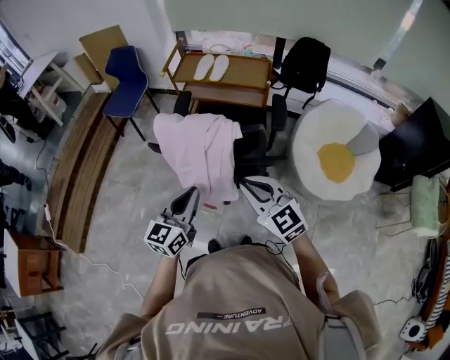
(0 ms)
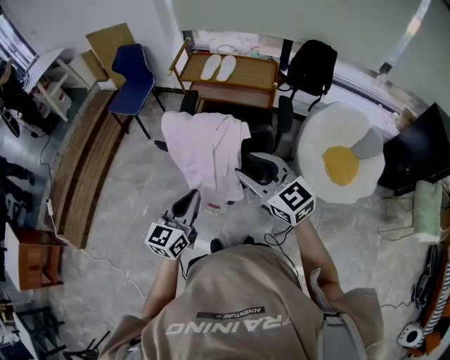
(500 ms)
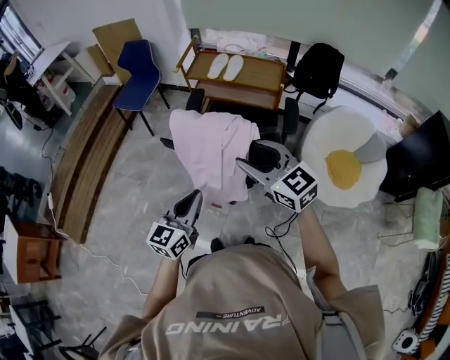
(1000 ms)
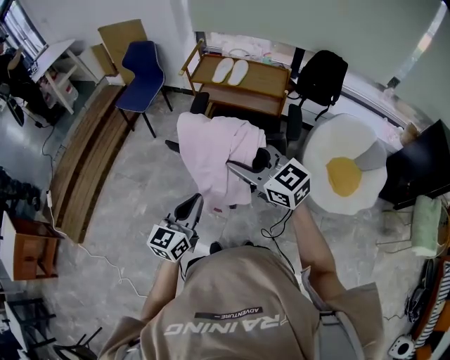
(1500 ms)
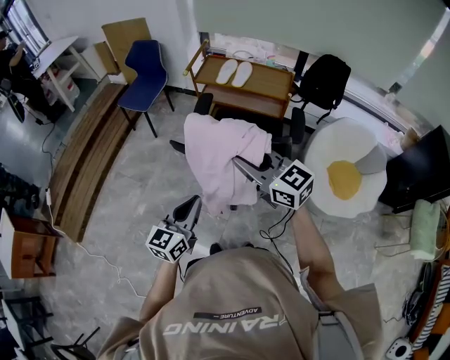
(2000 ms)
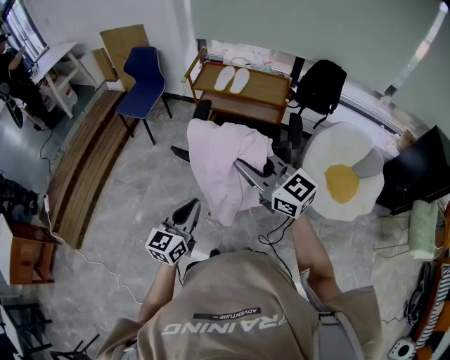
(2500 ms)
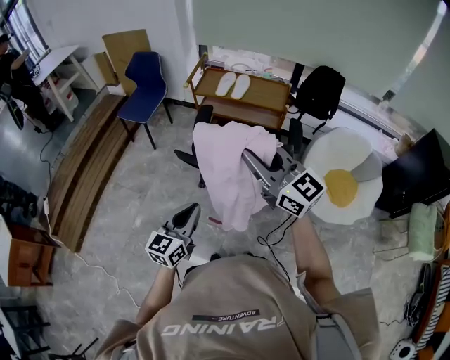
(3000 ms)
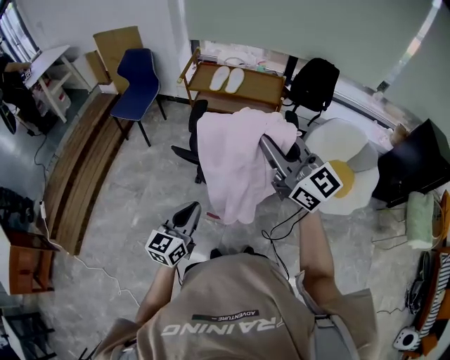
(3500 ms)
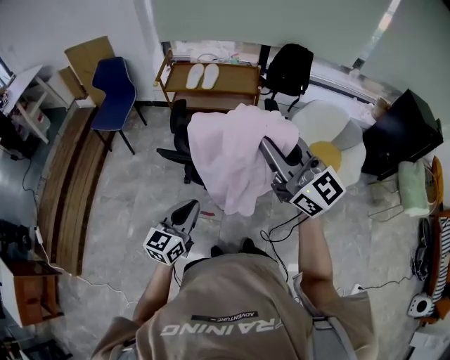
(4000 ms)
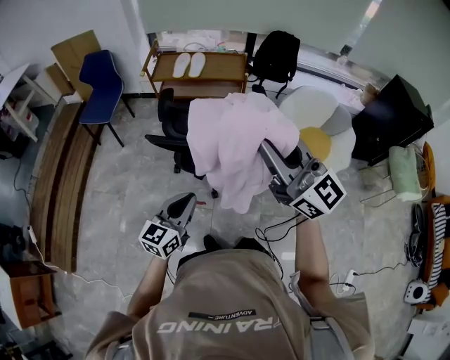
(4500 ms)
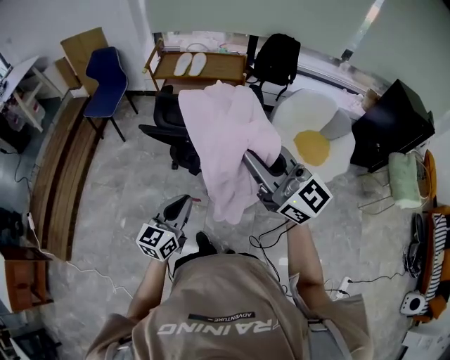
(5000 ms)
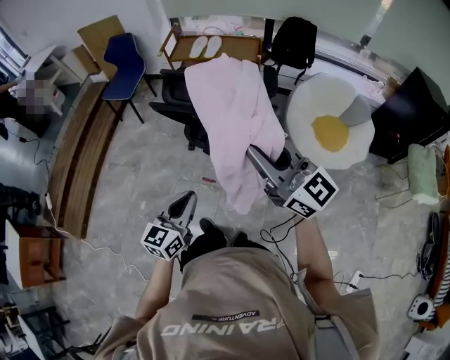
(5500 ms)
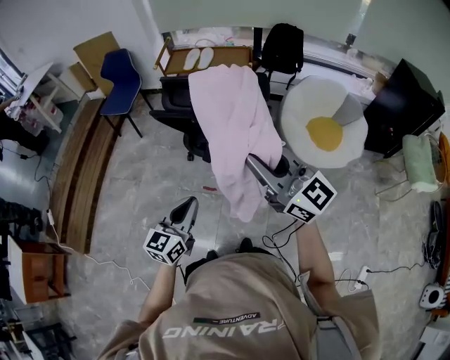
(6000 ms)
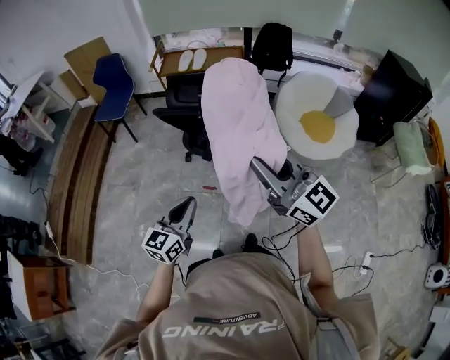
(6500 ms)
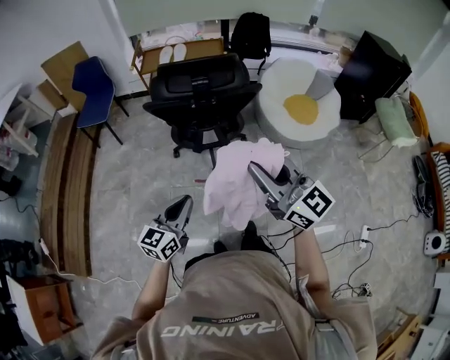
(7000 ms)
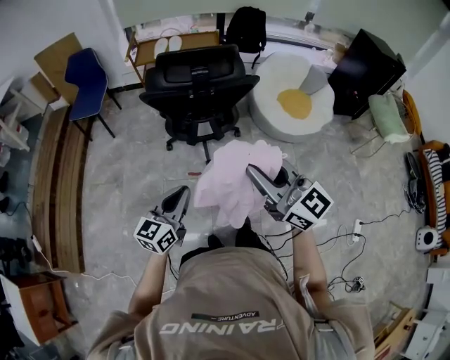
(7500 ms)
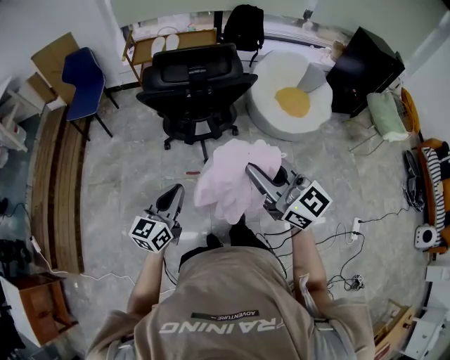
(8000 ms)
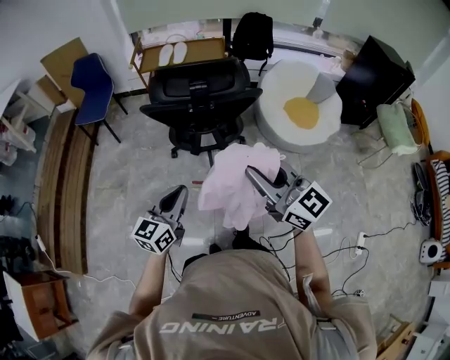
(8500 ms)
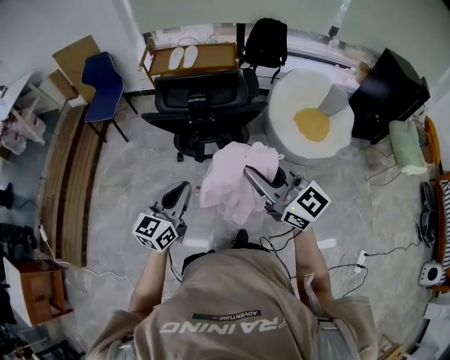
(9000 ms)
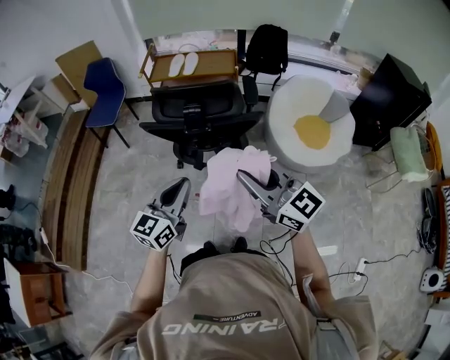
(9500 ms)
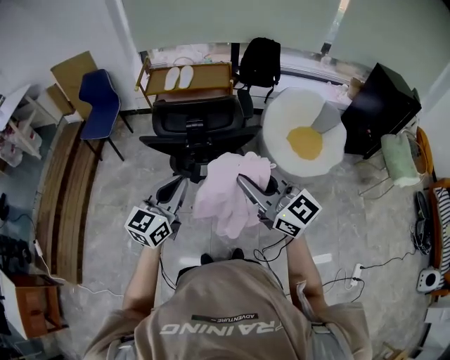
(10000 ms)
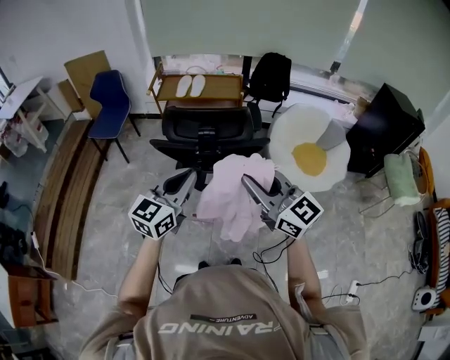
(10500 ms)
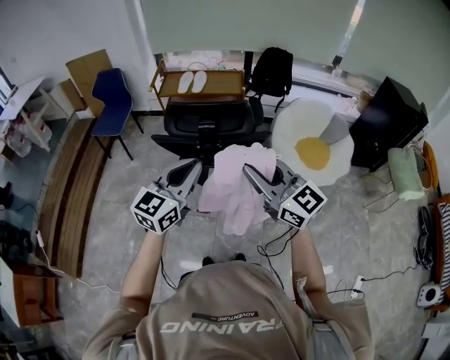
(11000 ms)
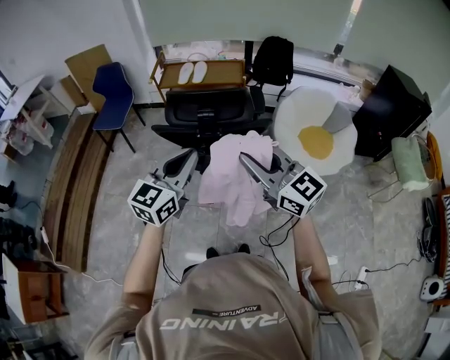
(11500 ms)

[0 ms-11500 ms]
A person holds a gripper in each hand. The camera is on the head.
0 ms to 2000 ms: The left gripper moves to the left, roughly 5 cm. Meanwhile the right gripper is displaced forward, to the left and upward by roughly 15 cm, swivels roughly 20 degrees, and opens and closes again.
2000 ms to 4000 ms: The right gripper goes some 15 cm upward and backward, and turns by some 30 degrees.
4000 ms to 6000 ms: The grippers both shift backward by approximately 20 cm.
6000 ms to 7500 ms: The right gripper heads backward and to the left, covering roughly 15 cm. The left gripper is displaced to the left by about 10 cm.
7500 ms to 9500 ms: The left gripper travels forward, to the right and upward by some 15 cm. Meanwhile the right gripper is displaced forward and to the right by about 15 cm.
9500 ms to 11500 ms: The right gripper changes place by about 5 cm, while the left gripper moves upward, about 10 cm.

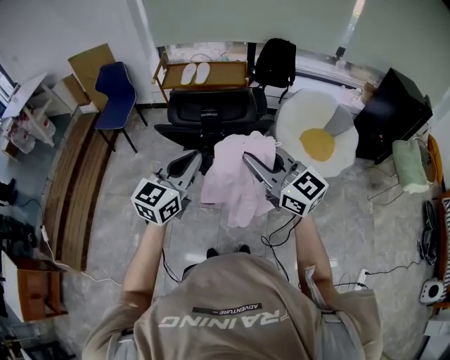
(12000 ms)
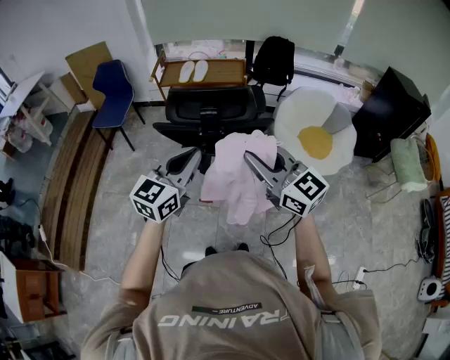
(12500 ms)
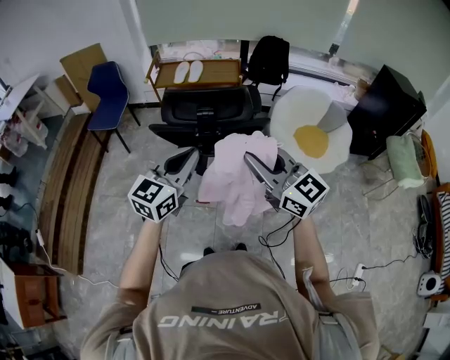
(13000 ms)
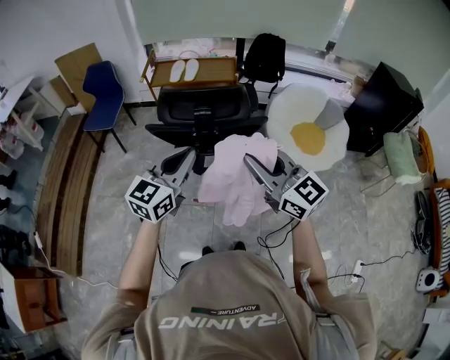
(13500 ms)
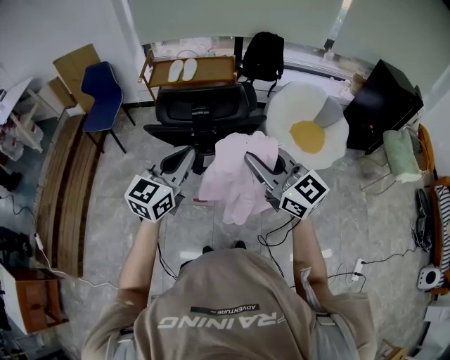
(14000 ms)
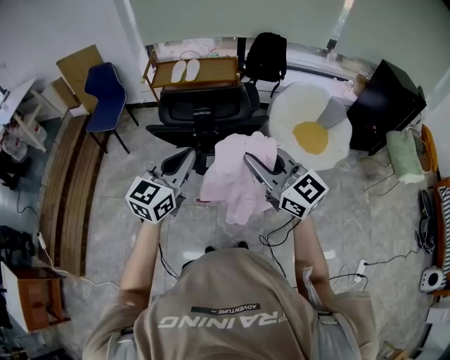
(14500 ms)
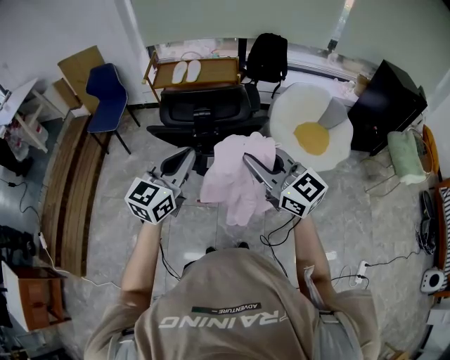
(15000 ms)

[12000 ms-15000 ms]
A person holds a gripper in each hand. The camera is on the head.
12000 ms to 13500 ms: There are only small adjustments of the grippers.
13500 ms to 15000 ms: The two grippers keep their place.

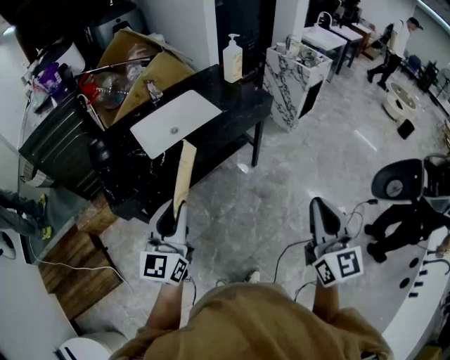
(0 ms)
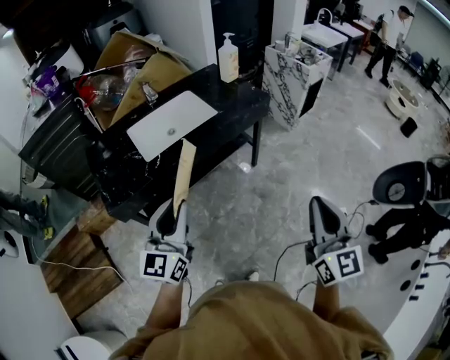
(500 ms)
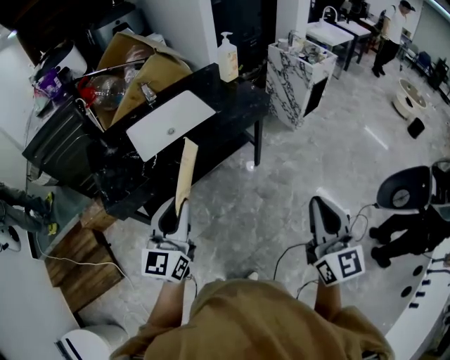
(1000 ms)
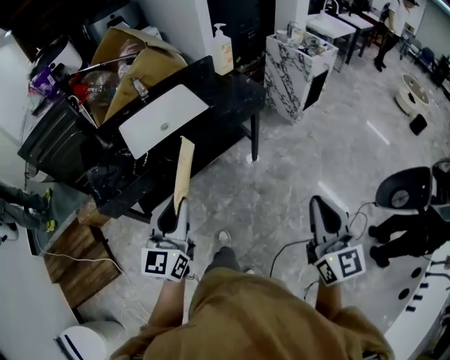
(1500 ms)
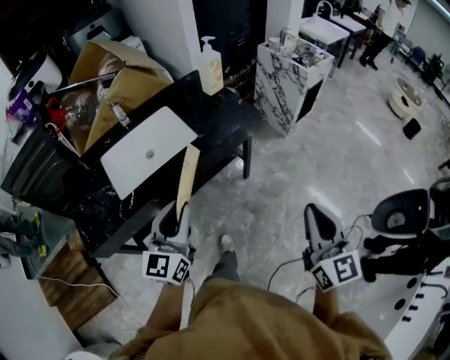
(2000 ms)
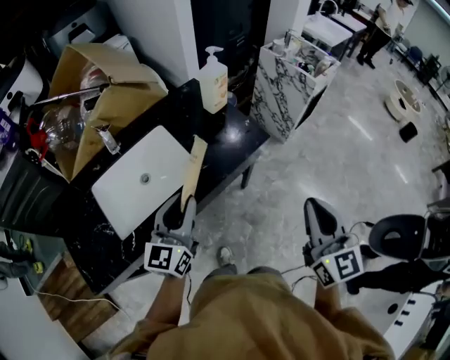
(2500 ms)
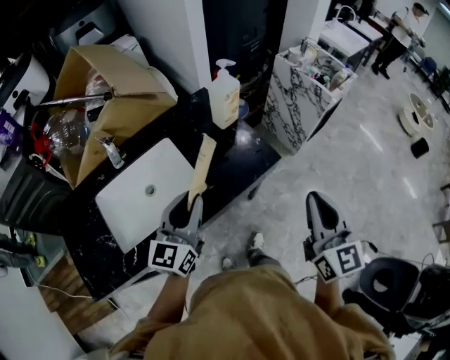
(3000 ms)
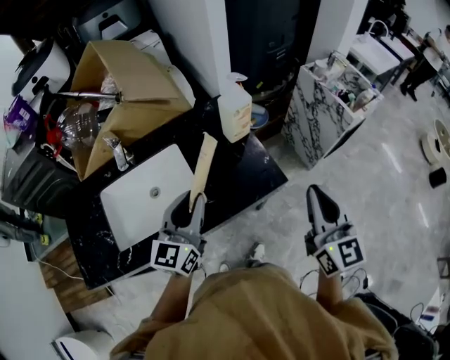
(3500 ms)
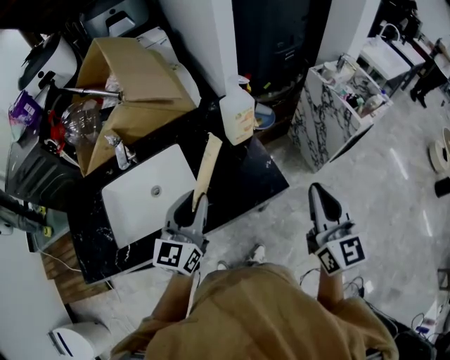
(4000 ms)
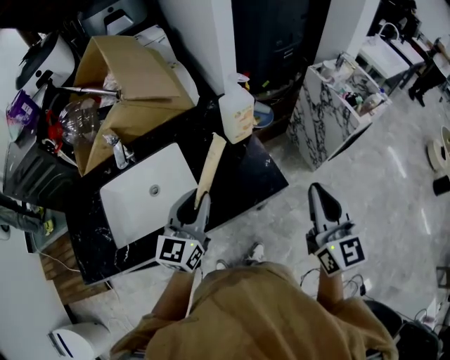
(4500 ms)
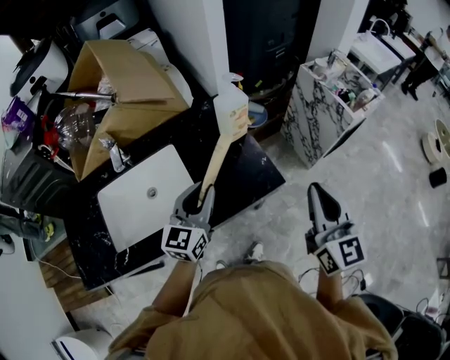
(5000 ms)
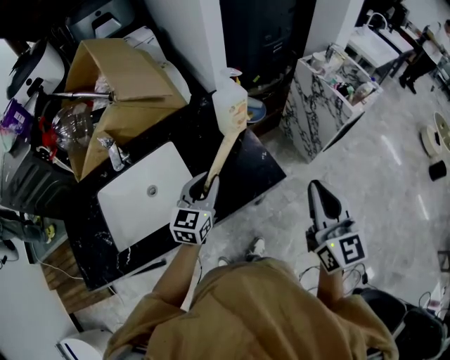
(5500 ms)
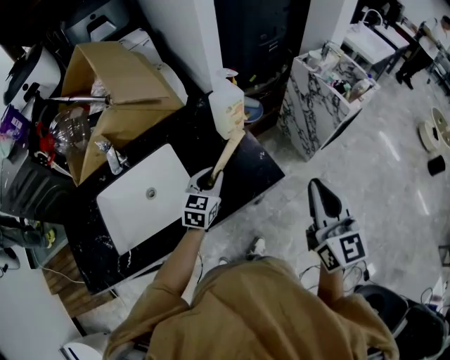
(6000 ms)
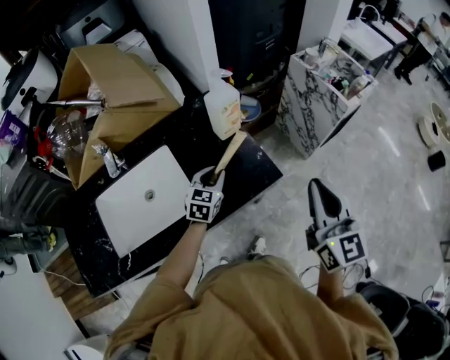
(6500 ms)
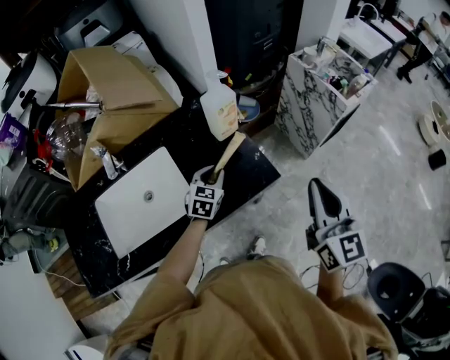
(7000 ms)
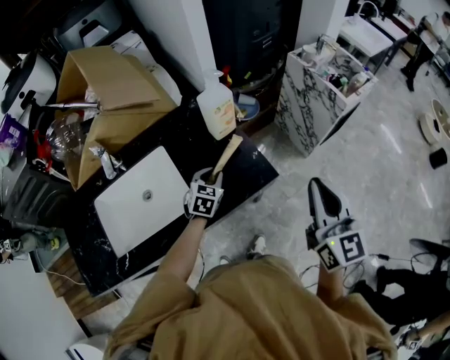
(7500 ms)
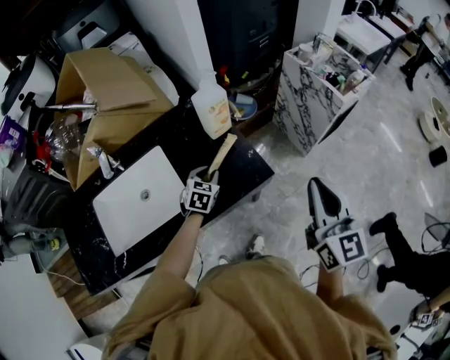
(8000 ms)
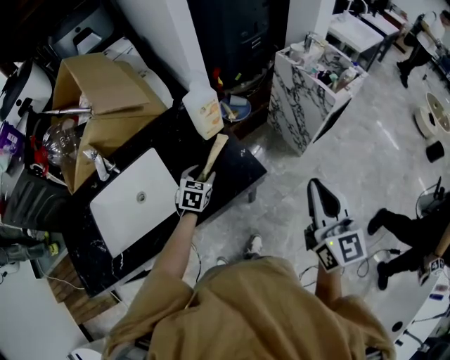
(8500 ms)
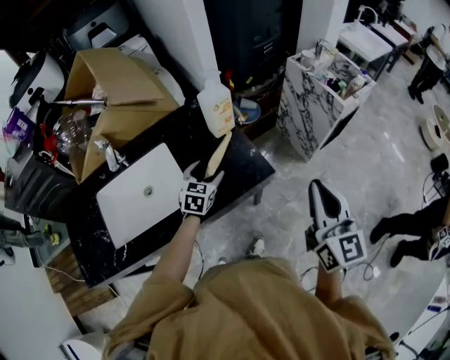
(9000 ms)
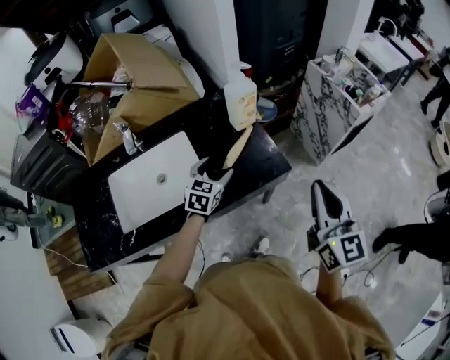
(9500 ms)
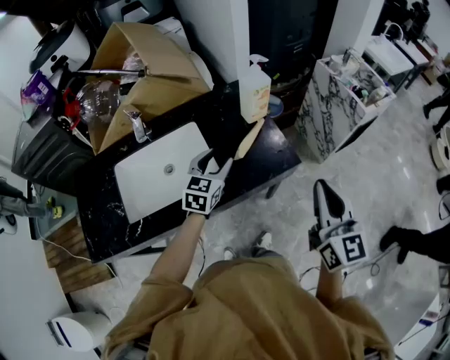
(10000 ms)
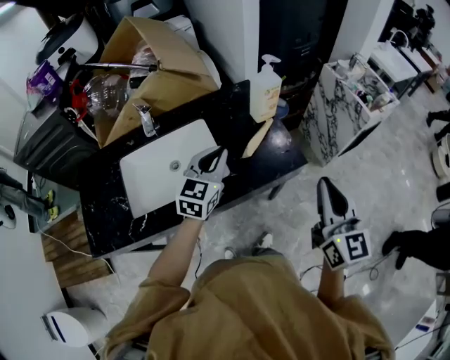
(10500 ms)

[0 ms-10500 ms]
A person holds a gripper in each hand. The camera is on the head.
0 ms to 2000 ms: Both grippers travel together forward and to the right, some 25 cm.
2000 ms to 4000 ms: Both grippers travel together forward, approximately 40 cm.
4000 ms to 6500 ms: The left gripper is displaced downward and forward by roughly 20 cm, and changes its angle by roughly 30 degrees.
6500 ms to 8500 ms: The left gripper shifts by about 5 cm, and opens. The right gripper shifts some 5 cm to the right.
8500 ms to 10500 ms: The right gripper heads to the left and backward, covering some 15 cm. Meanwhile the left gripper moves upward, backward and to the left, roughly 25 cm, rotates roughly 30 degrees, and closes up.

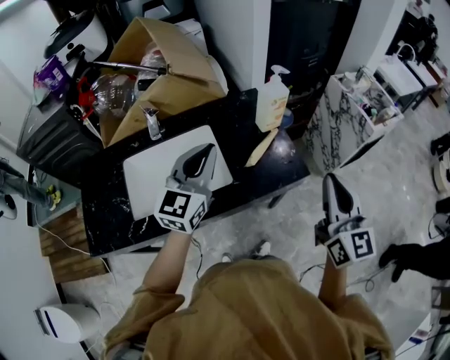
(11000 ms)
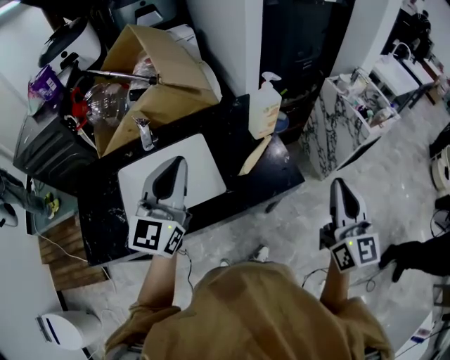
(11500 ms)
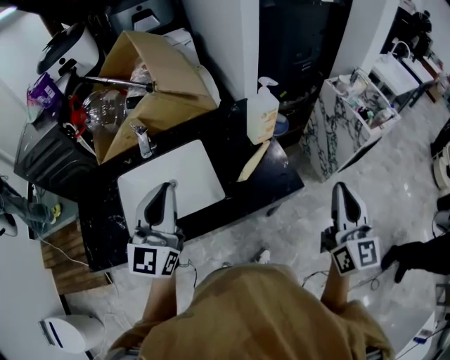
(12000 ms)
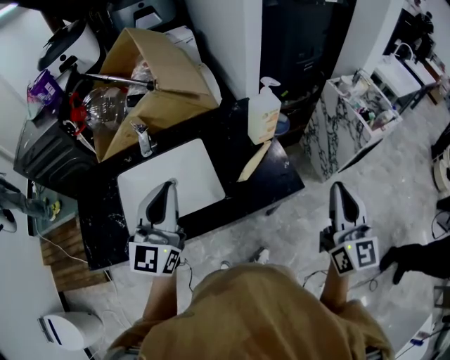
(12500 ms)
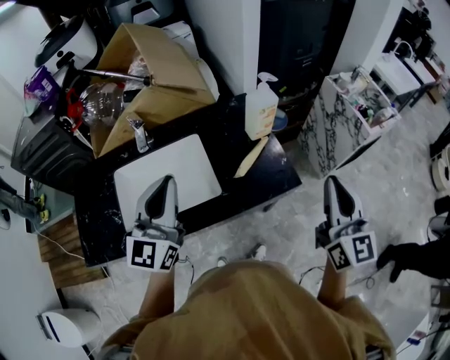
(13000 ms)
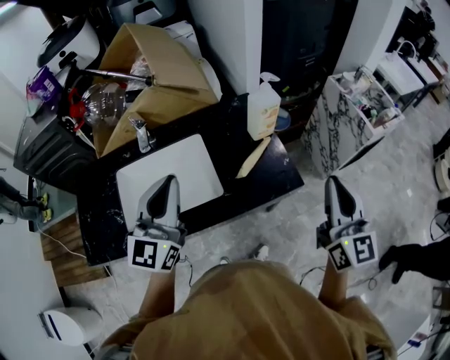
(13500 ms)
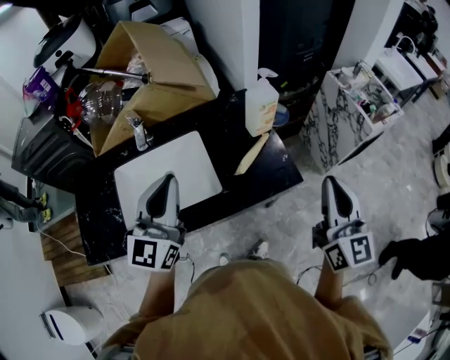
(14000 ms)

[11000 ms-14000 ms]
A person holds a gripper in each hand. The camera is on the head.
11000 ms to 12500 ms: The left gripper heads to the left, covering about 5 cm. The right gripper changes place by some 5 cm.
12500 ms to 14000 ms: There are only small adjustments of the grippers.
